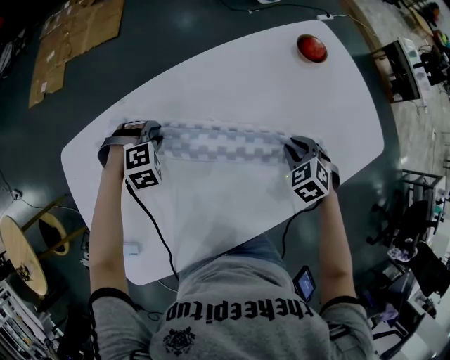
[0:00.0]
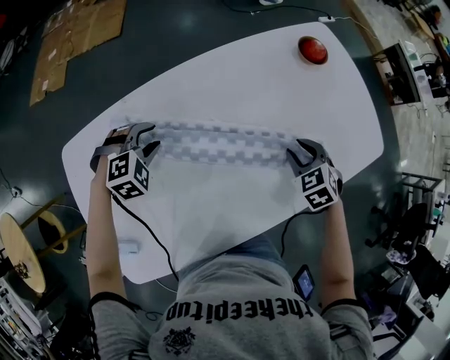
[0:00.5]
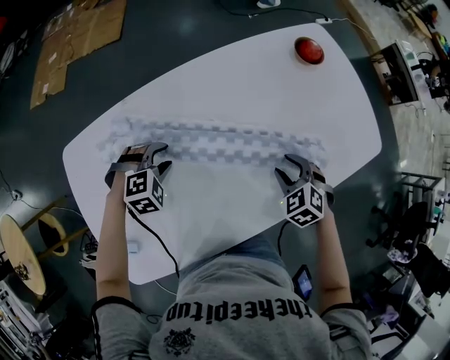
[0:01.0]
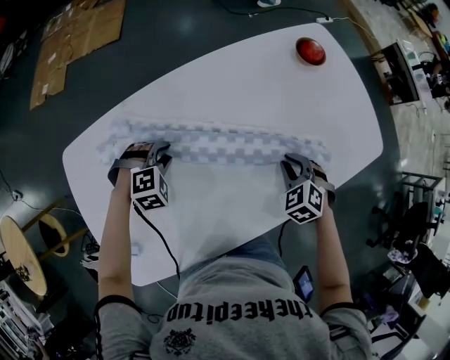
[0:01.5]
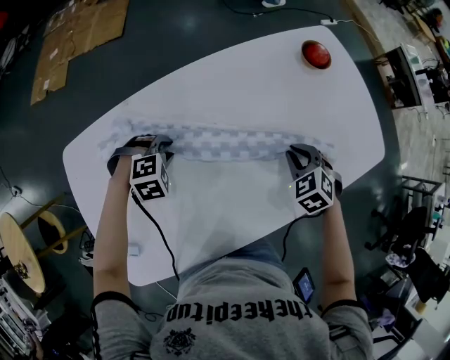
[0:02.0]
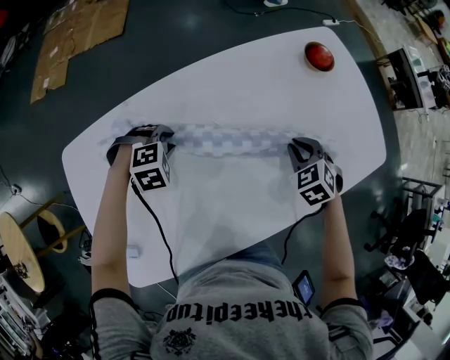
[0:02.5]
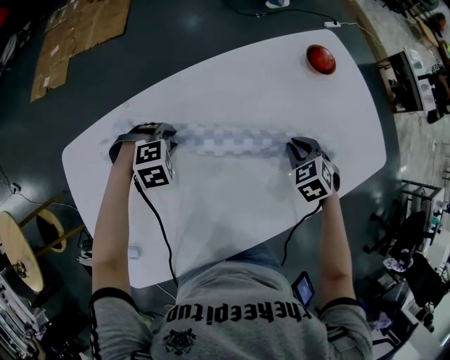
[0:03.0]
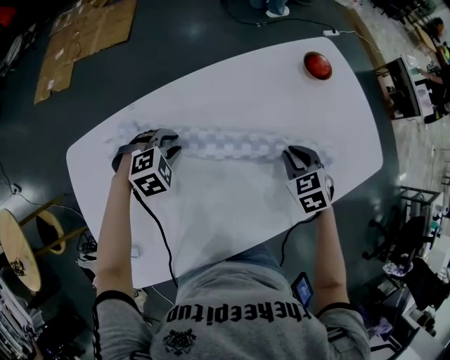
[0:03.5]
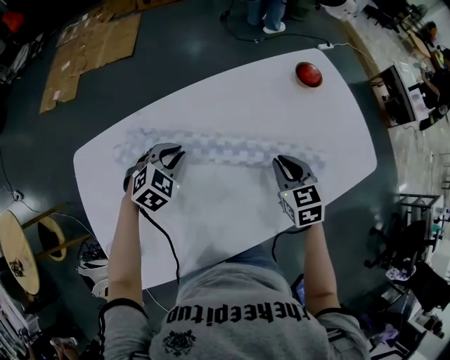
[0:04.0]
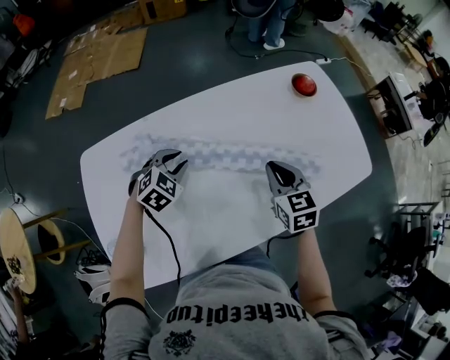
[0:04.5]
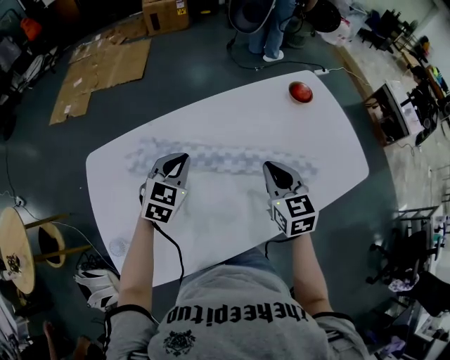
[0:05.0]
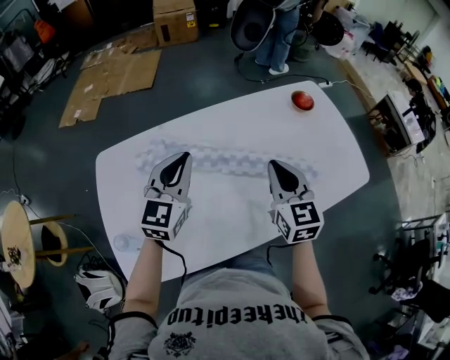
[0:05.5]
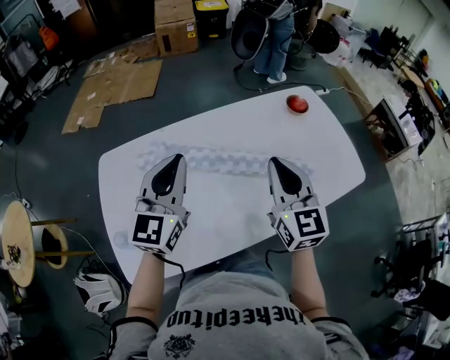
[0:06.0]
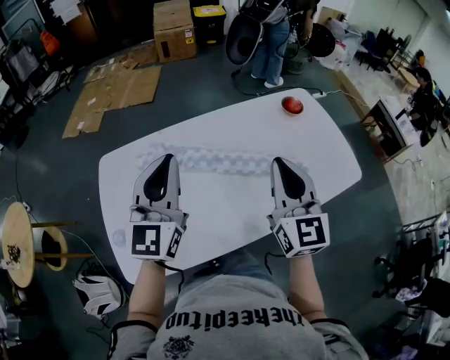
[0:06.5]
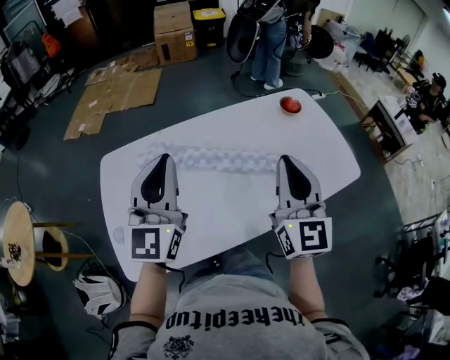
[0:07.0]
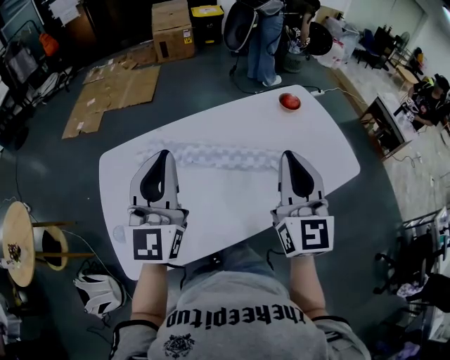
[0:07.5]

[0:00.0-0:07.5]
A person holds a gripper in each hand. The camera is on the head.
0:02.0 to 0:04.0: The two grippers go some 5 cm upward. The left gripper rotates about 40 degrees. Meanwhile the right gripper swivels some 30 degrees.
0:04.0 to 0:05.5: The two grippers go about 20 cm upward and backward. The right gripper swivels roughly 20 degrees, while the left gripper tilts its fingers some 40 degrees upward.
0:05.5 to 0:07.5: The two grippers go about 20 cm upward and backward. The left gripper swivels approximately 30 degrees. Meanwhile the right gripper turns by about 30 degrees.

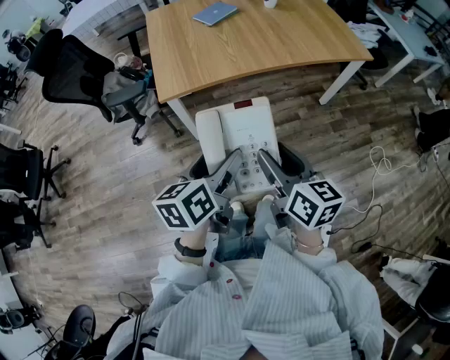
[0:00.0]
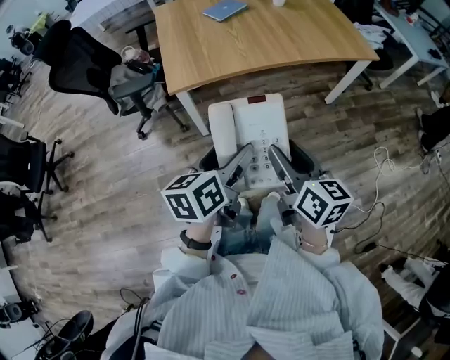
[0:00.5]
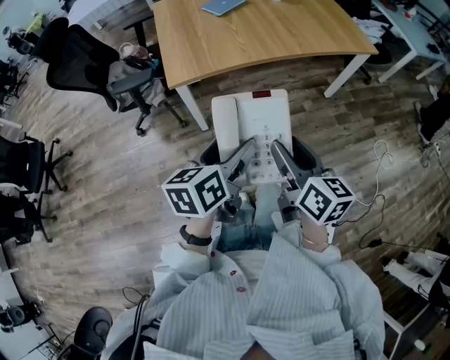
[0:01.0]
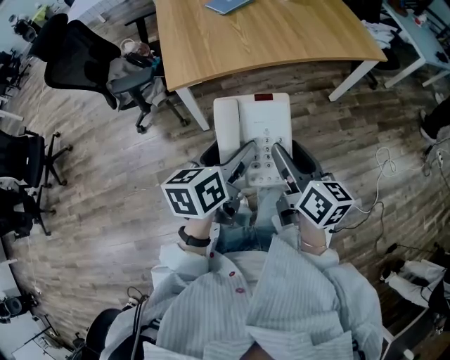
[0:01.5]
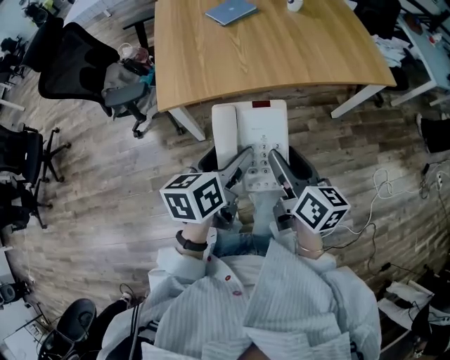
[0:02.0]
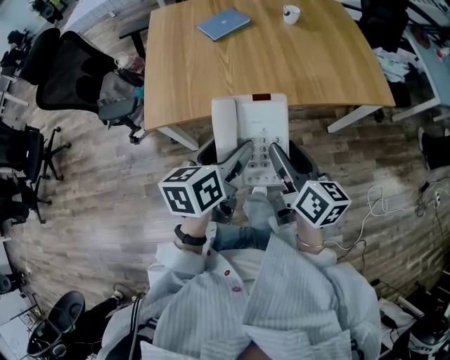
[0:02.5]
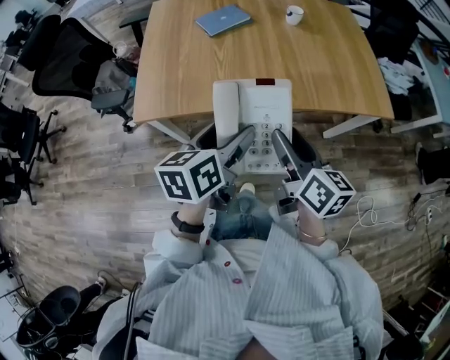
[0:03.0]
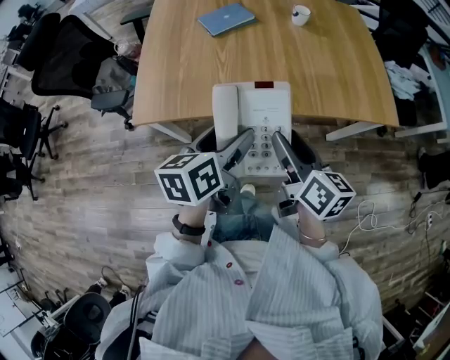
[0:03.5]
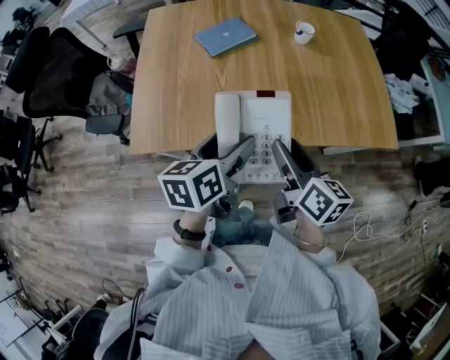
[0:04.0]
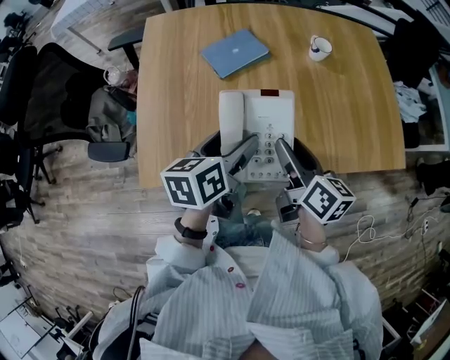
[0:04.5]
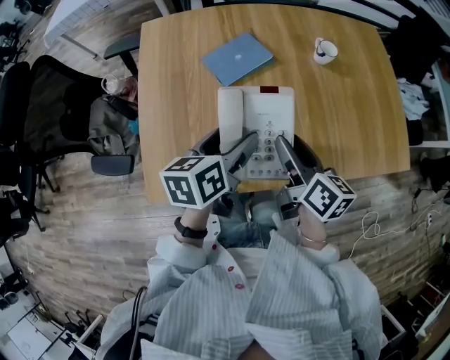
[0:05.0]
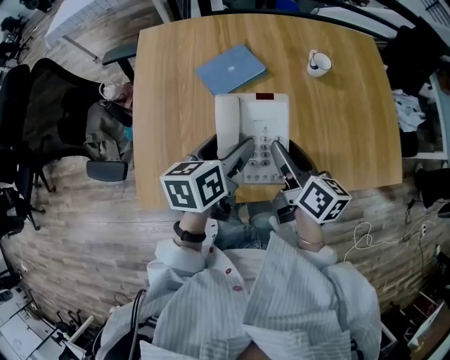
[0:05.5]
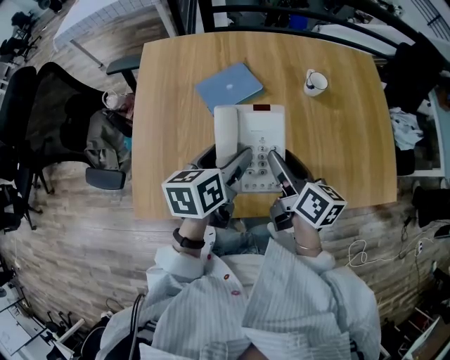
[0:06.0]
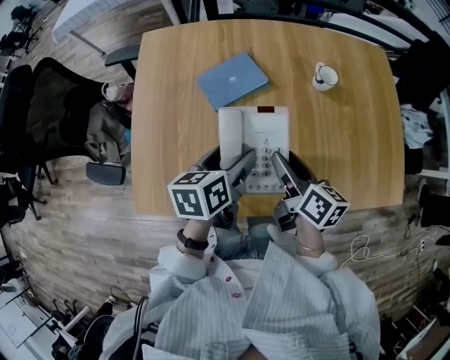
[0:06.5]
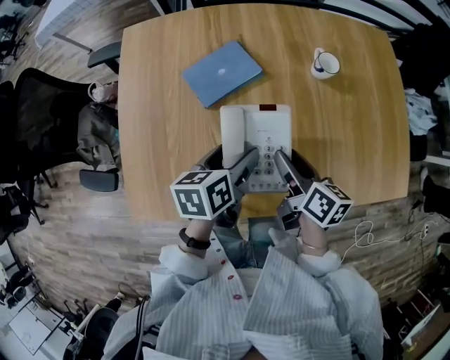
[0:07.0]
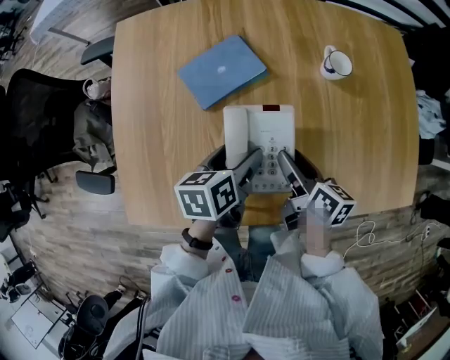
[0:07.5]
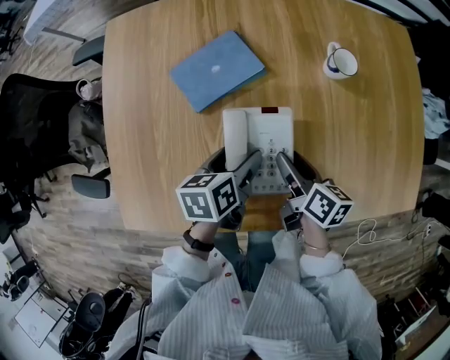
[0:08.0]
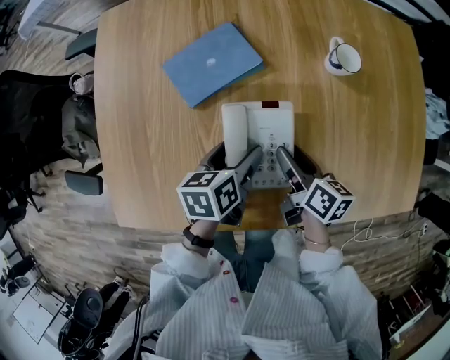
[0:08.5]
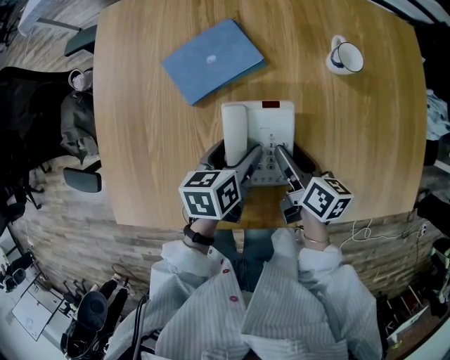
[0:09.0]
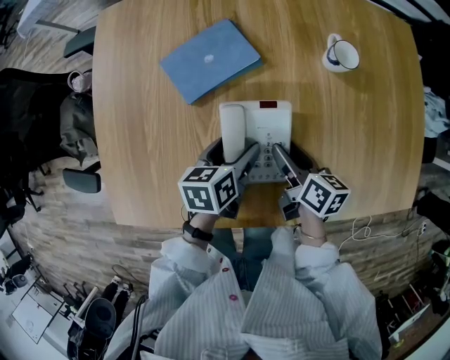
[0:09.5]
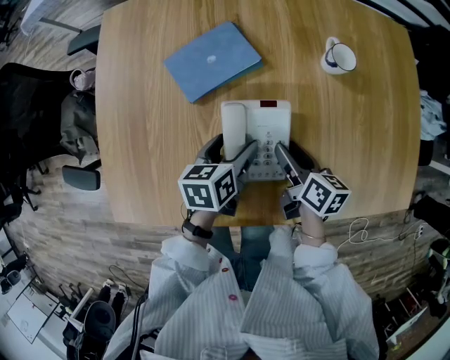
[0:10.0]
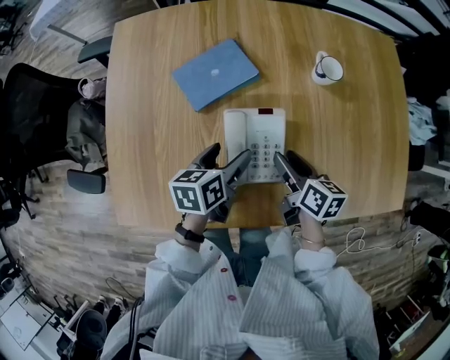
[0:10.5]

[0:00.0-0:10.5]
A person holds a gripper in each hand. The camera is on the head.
0:00.0 to 0:02.0: Both grippers travel together forward, roughly 15 cm.
0:02.0 to 0:04.0: The two grippers go some 30 cm forward.
0:04.0 to 0:06.5: The grippers both shift forward by some 25 cm.
0:06.5 to 0:08.5: The grippers both shift downward by approximately 15 cm.
0:08.5 to 0:10.5: The grippers stay close to where they were, moving slightly.

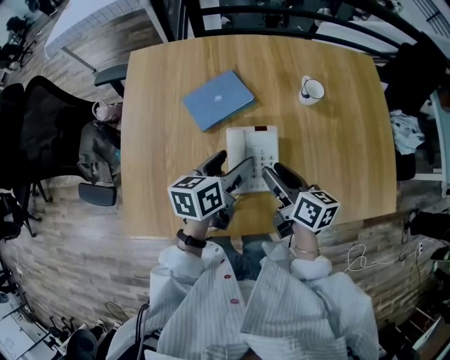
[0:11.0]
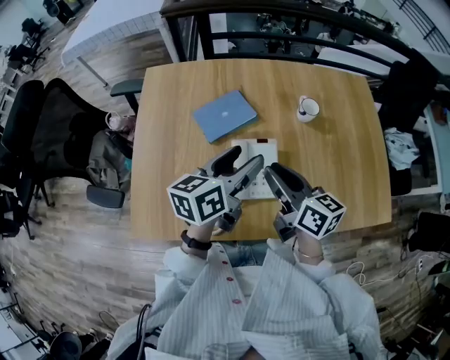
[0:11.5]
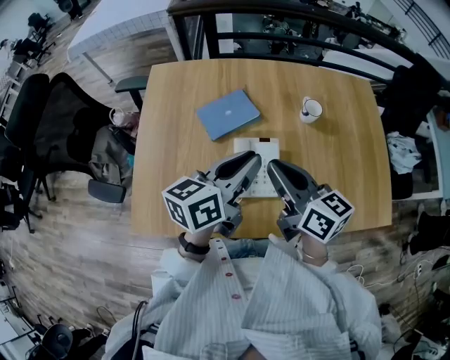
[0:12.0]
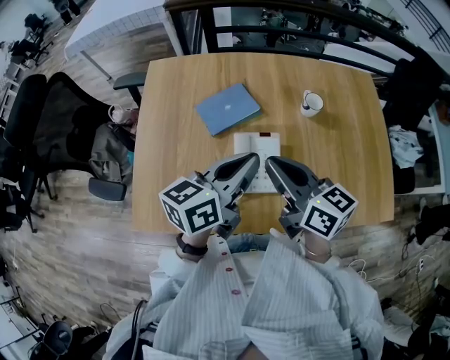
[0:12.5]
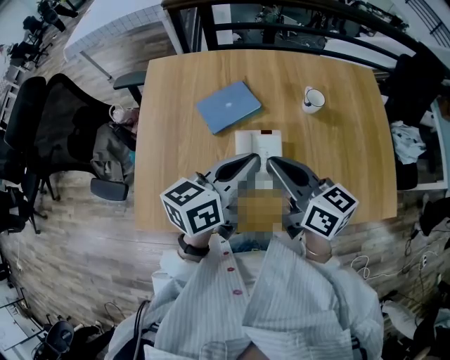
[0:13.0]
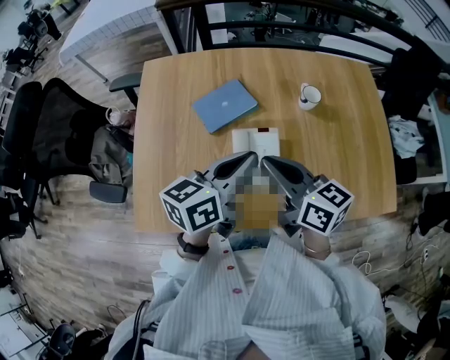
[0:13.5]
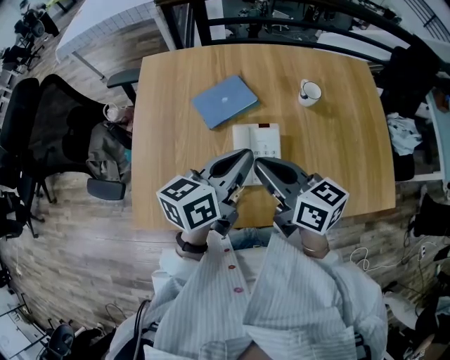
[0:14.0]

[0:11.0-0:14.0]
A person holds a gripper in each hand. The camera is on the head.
0:11.0 to 0:12.5: The grippers both shift upward by about 15 cm. The left gripper turns by approximately 20 degrees, and closes, while the right gripper rotates roughly 30 degrees, and closes up.
0:12.5 to 0:14.0: The grippers move only a little.

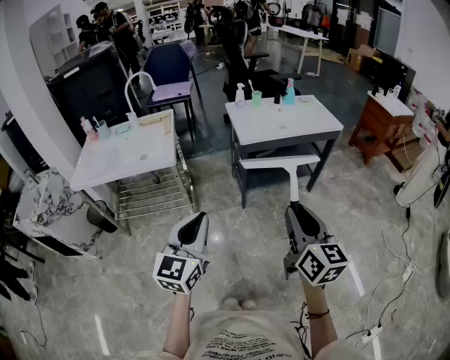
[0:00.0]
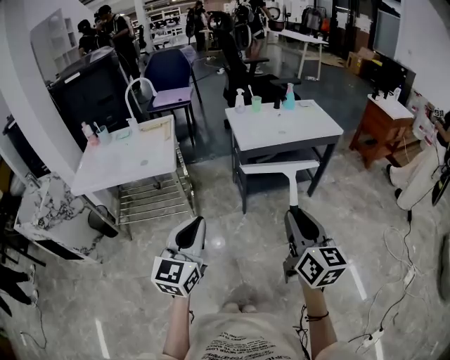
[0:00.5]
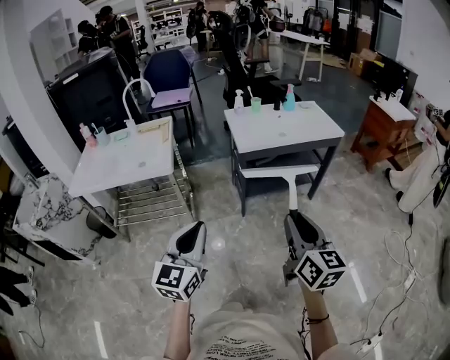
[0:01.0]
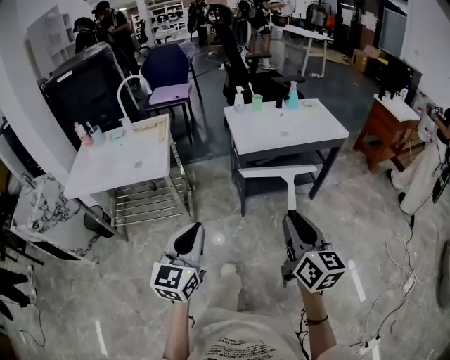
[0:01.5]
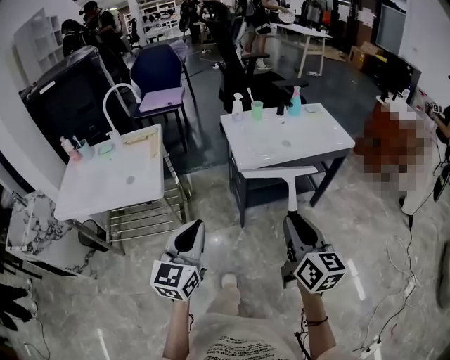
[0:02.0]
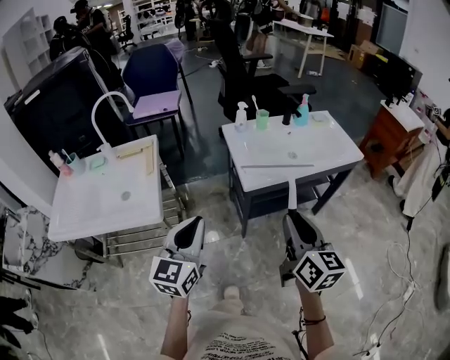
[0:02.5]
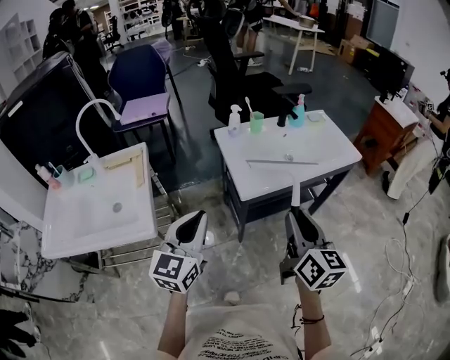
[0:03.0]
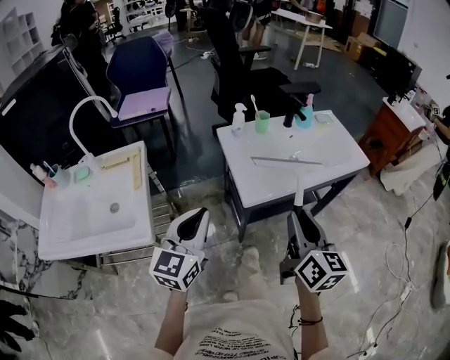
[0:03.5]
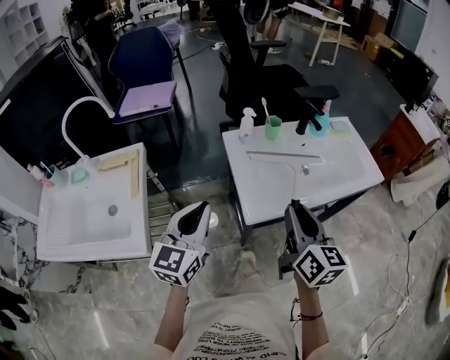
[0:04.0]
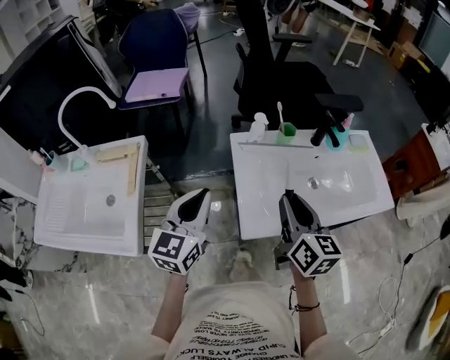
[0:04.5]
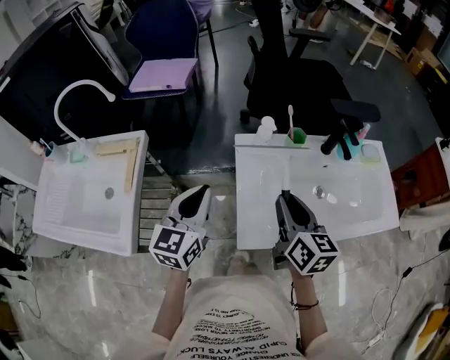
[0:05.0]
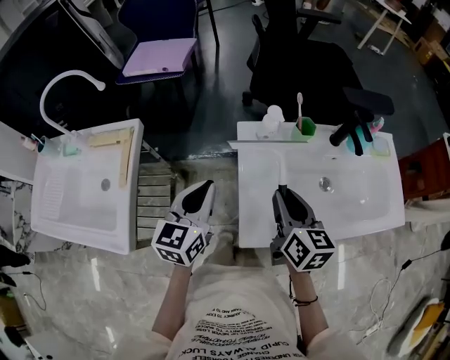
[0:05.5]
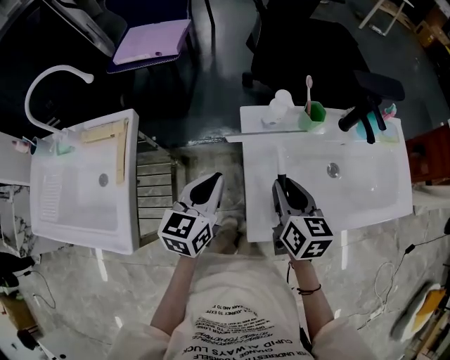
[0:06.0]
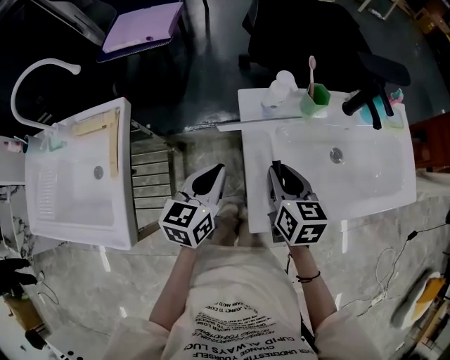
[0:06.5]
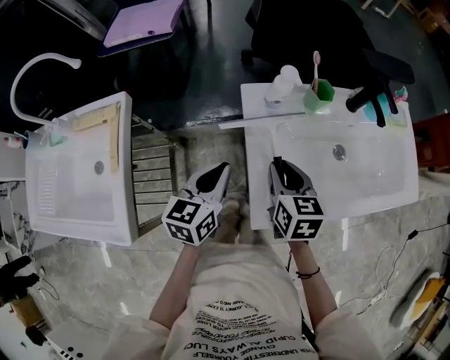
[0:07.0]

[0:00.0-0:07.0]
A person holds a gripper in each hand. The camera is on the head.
0:00.0 to 0:02.0: The two grippers go roughly 20 cm forward.
0:02.0 to 0:03.5: The grippers both shift forward by about 20 cm.
0:03.5 to 0:05.0: Both grippers travel together forward, approximately 25 cm. The right gripper rotates roughly 20 degrees.
0:05.0 to 0:07.0: Both grippers move downward, roughly 10 cm. The right gripper changes its angle by about 20 degrees; the left gripper turns by approximately 20 degrees.
